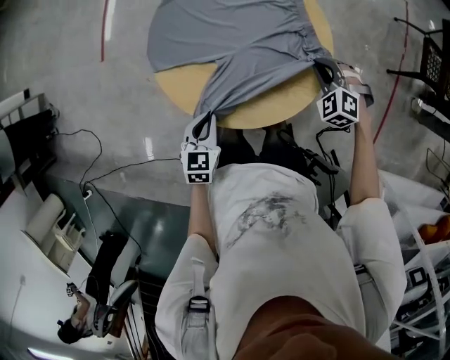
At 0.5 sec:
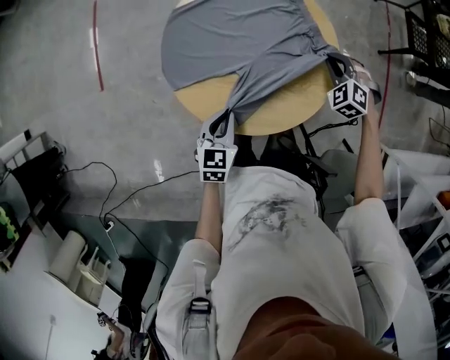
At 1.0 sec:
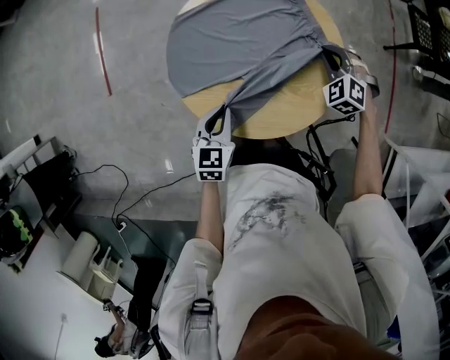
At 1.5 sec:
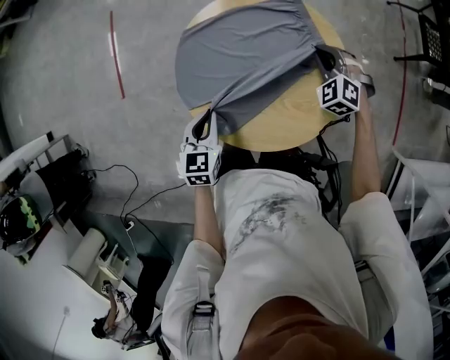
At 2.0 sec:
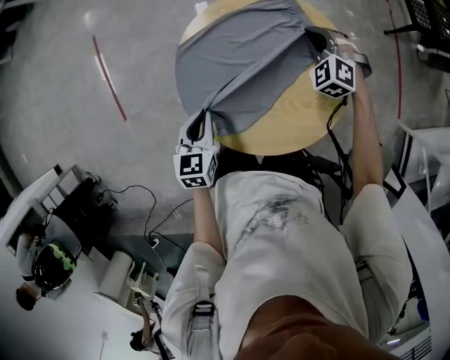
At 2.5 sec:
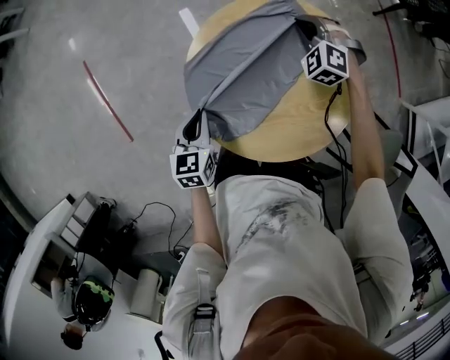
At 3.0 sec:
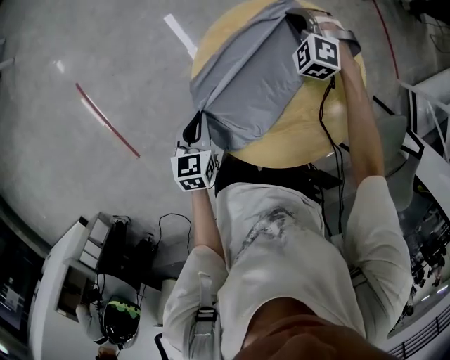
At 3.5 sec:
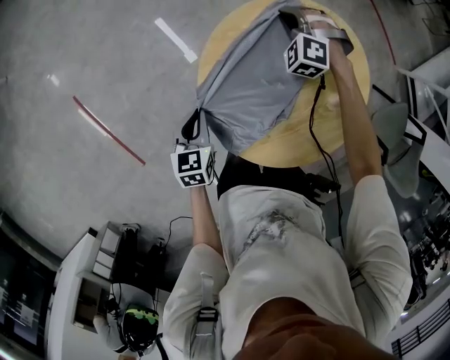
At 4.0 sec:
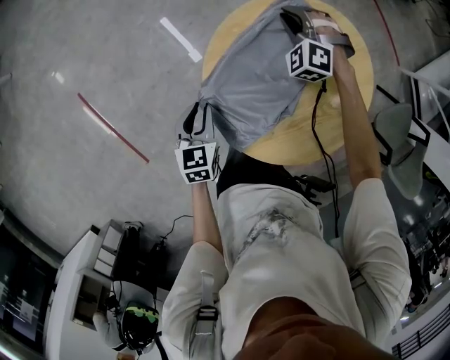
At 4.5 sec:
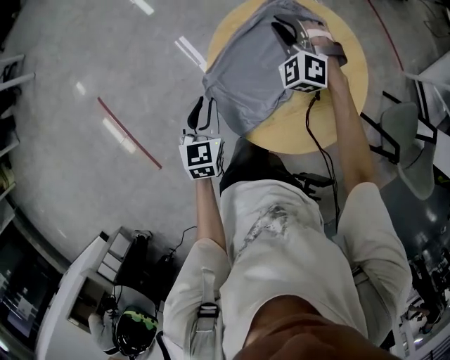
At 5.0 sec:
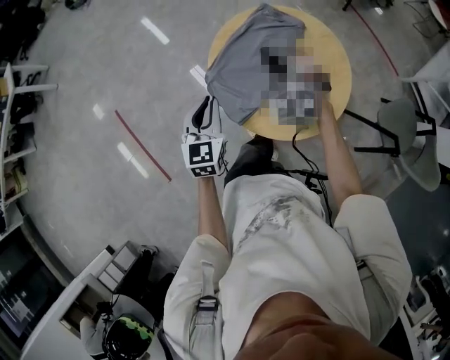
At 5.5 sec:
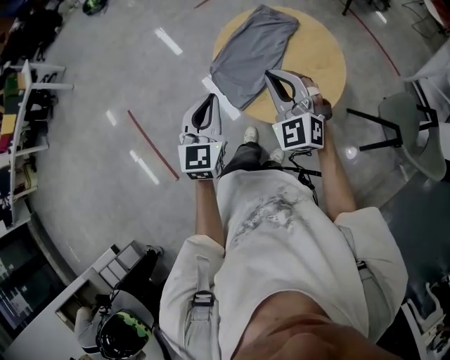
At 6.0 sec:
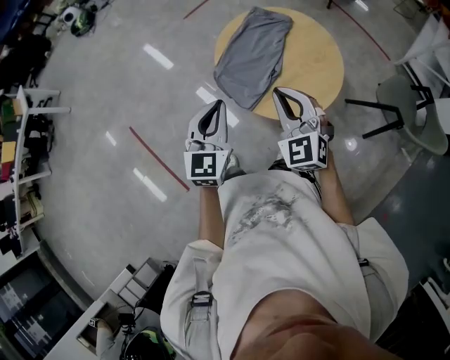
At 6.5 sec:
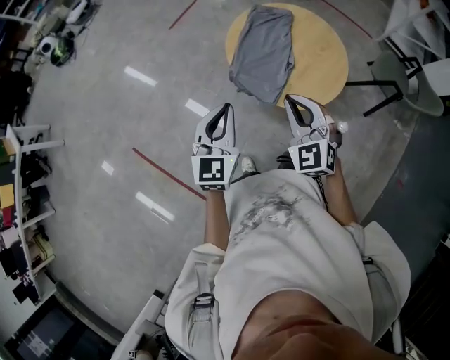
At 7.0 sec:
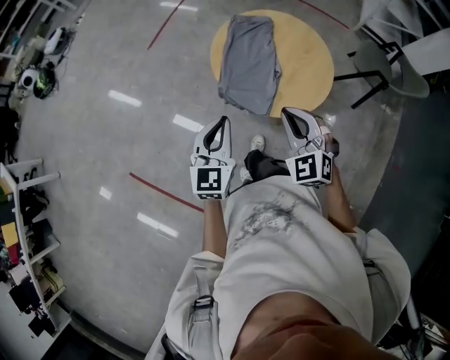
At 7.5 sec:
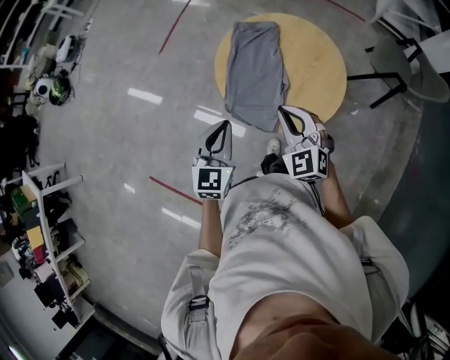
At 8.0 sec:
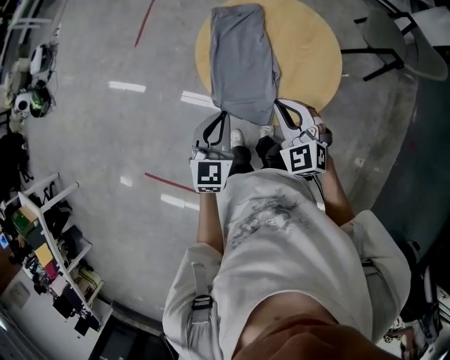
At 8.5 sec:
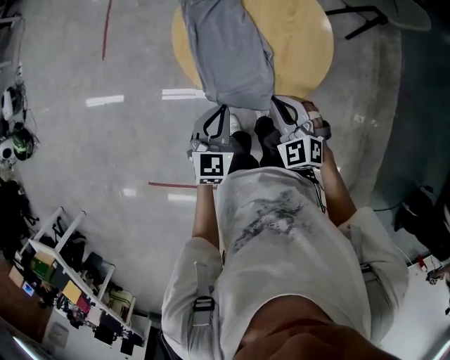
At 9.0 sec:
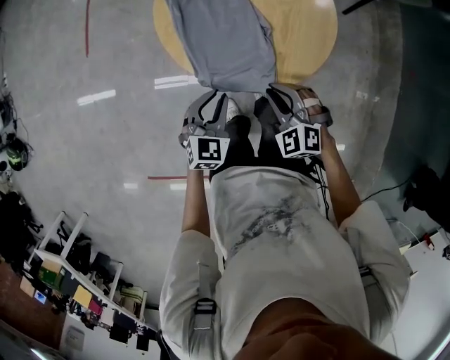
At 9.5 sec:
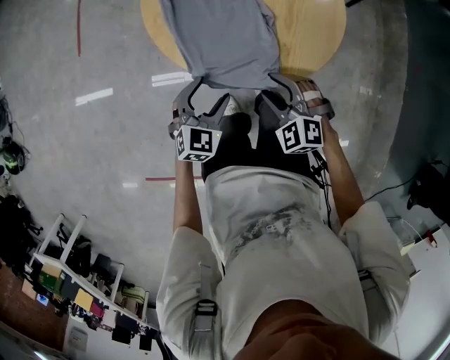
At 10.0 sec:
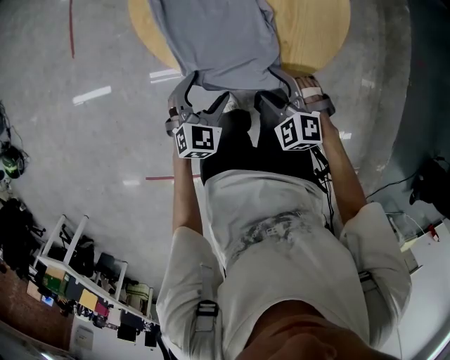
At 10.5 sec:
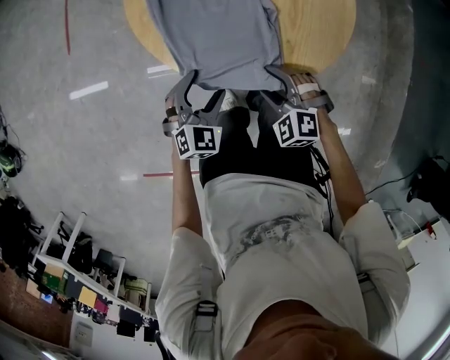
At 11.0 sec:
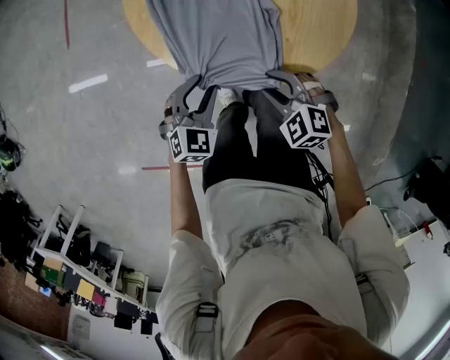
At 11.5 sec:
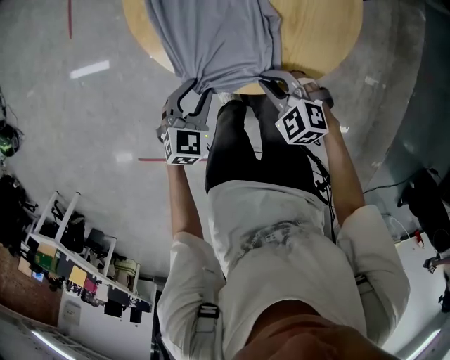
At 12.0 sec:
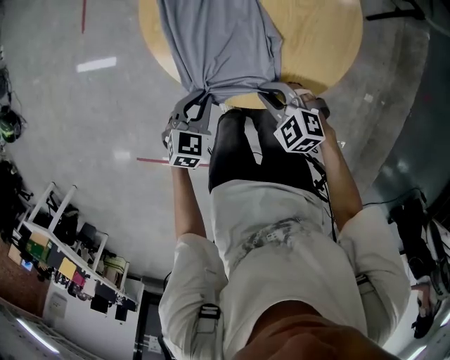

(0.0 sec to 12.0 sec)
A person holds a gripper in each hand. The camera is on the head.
0.0 sec - 2.0 sec: The two grippers go about 20 cm forward and to the left. The right gripper rotates approximately 20 degrees.
2.0 sec - 4.0 sec: The right gripper shifts by roughly 15 cm. The left gripper ends up about 20 cm from where it was, and turns by about 20 degrees.
4.0 sec - 6.0 sec: The left gripper heads upward and backward, covering approximately 40 cm, and changes its angle by roughly 40 degrees. Meanwhile the right gripper travels backward and upward by approximately 60 cm, and swivels about 50 degrees.
6.0 sec - 8.0 sec: The left gripper changes place by some 20 cm, and swivels some 30 degrees; the right gripper shifts some 10 cm downward, and turns by roughly 30 degrees.
8.0 sec - 10.0 sec: Both grippers travel together downward, some 30 cm. The right gripper turns by roughly 30 degrees, and opens up, while the left gripper changes its angle by about 40 degrees, and opens.
10.0 sec - 12.0 sec: The left gripper turns by about 20 degrees, and closes. The right gripper rotates approximately 20 degrees, and closes its fingers.

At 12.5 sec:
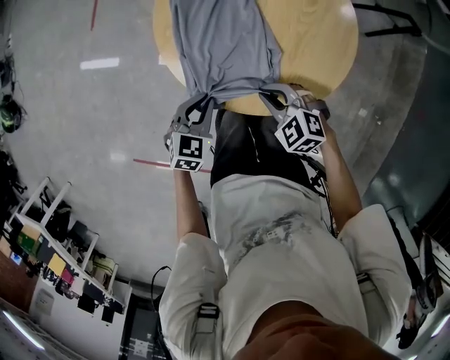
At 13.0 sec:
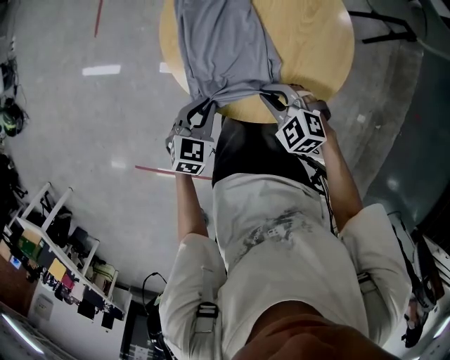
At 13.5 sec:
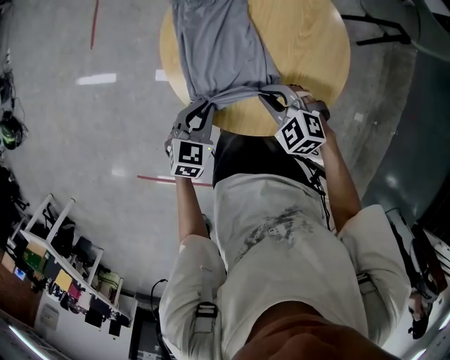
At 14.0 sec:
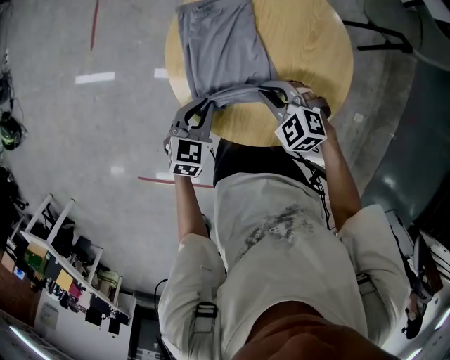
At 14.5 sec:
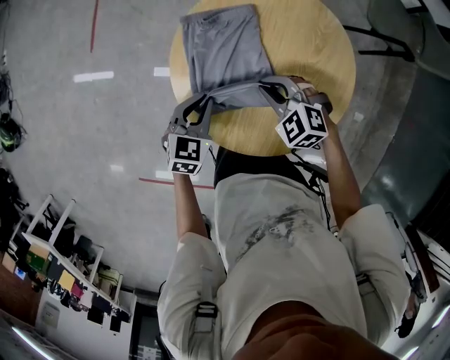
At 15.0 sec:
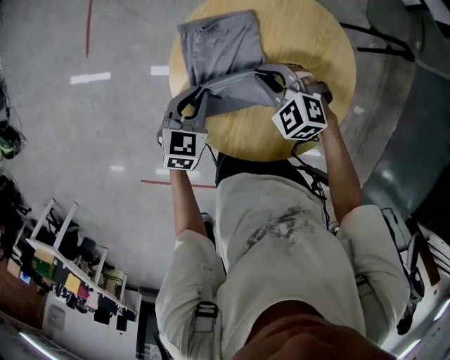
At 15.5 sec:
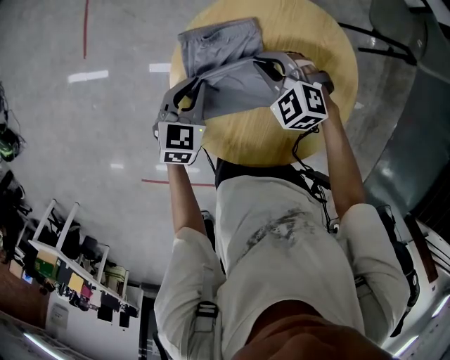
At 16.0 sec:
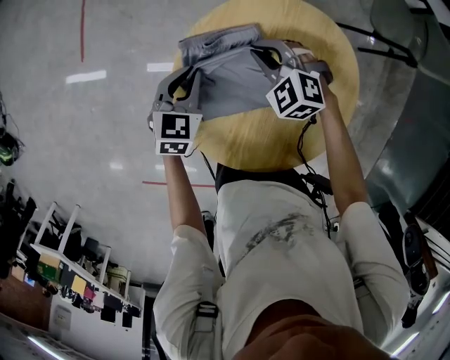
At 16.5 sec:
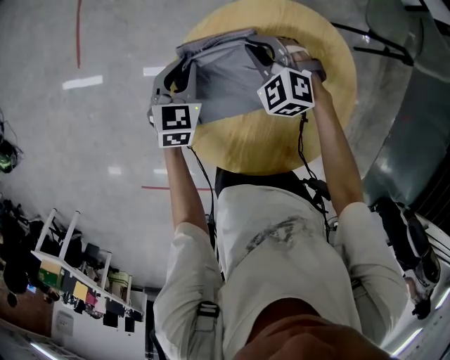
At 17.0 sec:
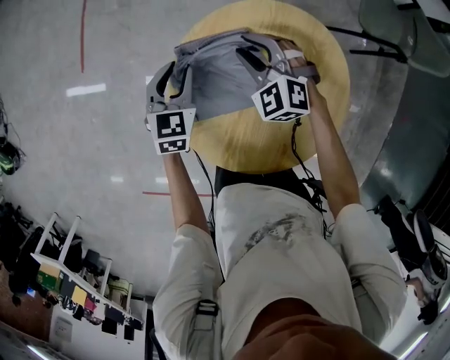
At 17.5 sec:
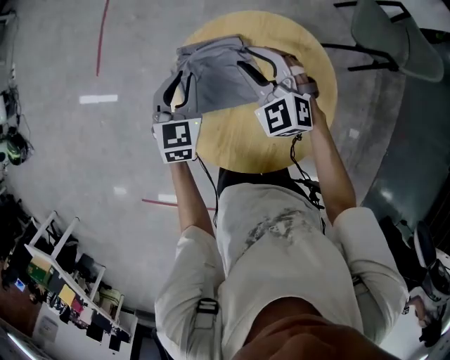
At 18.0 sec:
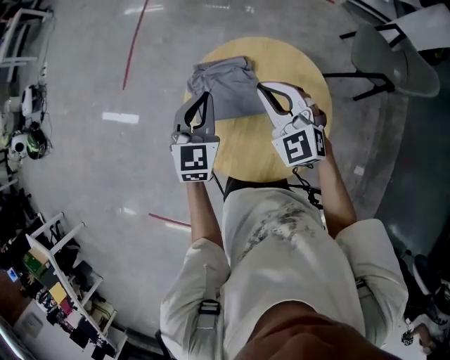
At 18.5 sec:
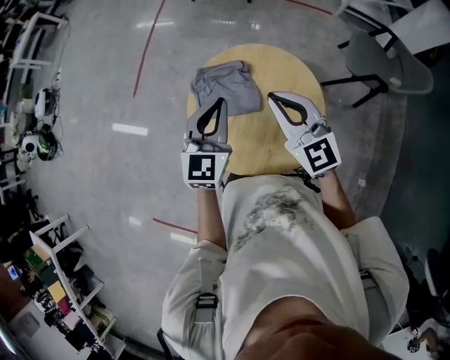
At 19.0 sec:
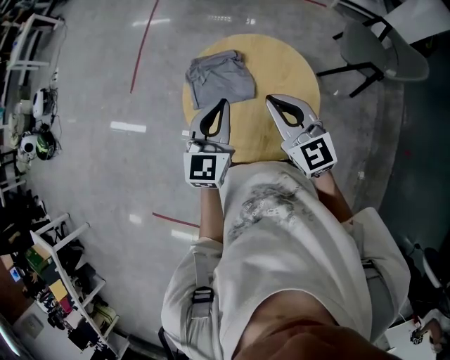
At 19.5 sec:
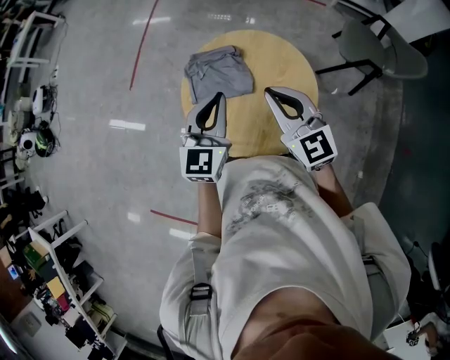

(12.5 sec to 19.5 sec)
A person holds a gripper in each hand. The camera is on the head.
12.5 sec - 14.5 sec: The two grippers go about 20 cm forward.
14.5 sec - 16.0 sec: The grippers both shift forward by about 15 cm.
16.0 sec - 17.5 sec: The grippers both shift upward by some 10 cm. The right gripper swivels roughly 20 degrees, and opens.
17.5 sec - 19.5 sec: The right gripper heads backward and upward, covering some 30 cm, rotates some 30 degrees, and closes up. Meanwhile the left gripper travels upward and backward by approximately 30 cm, and changes its angle by roughly 20 degrees.

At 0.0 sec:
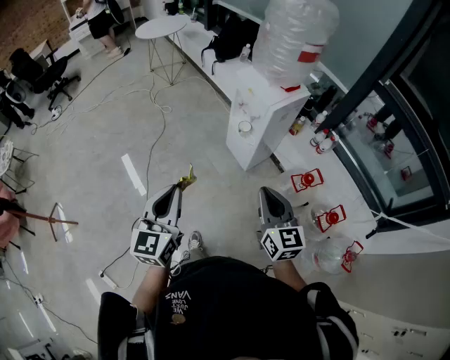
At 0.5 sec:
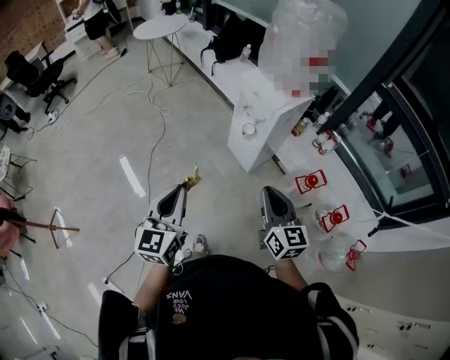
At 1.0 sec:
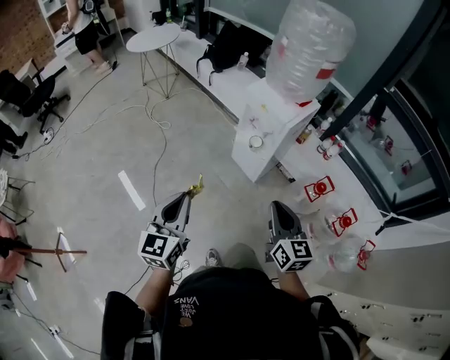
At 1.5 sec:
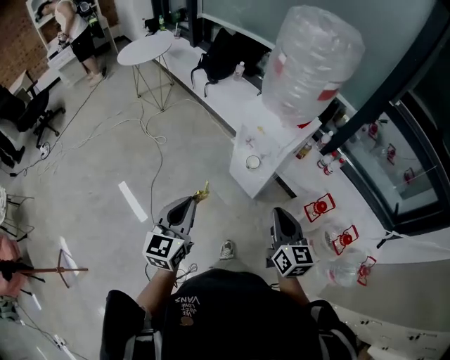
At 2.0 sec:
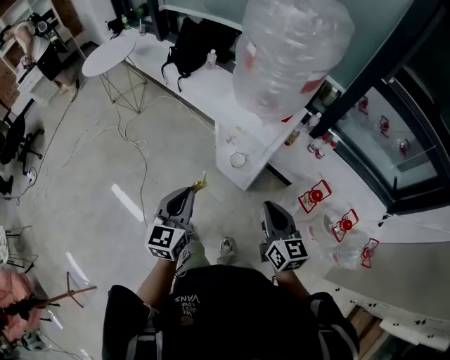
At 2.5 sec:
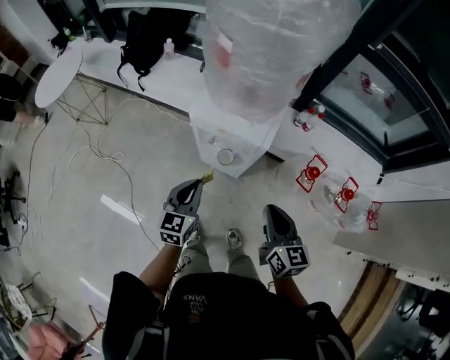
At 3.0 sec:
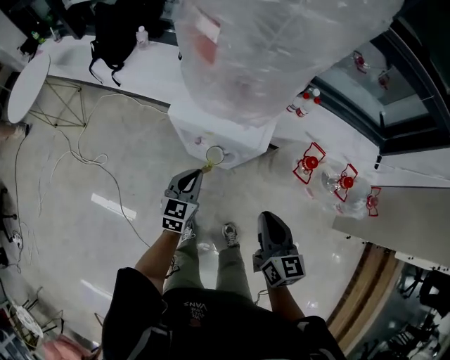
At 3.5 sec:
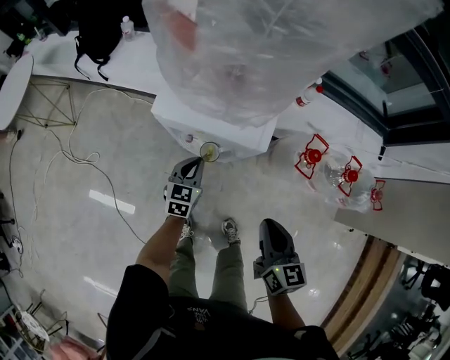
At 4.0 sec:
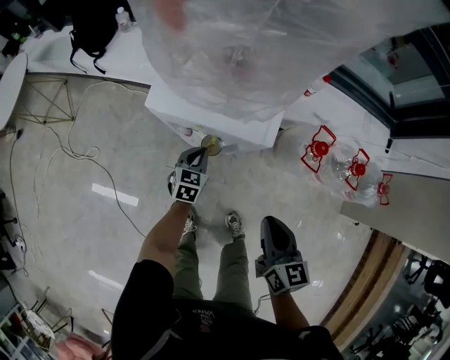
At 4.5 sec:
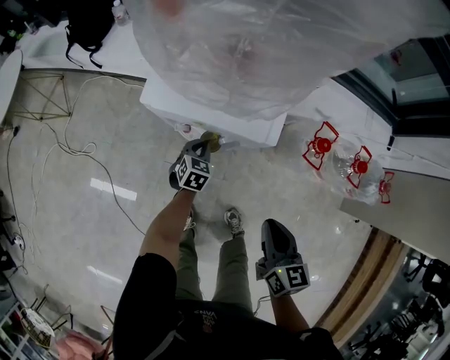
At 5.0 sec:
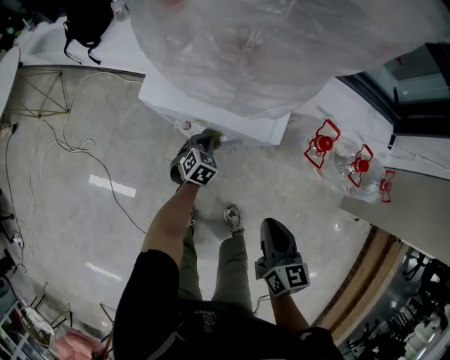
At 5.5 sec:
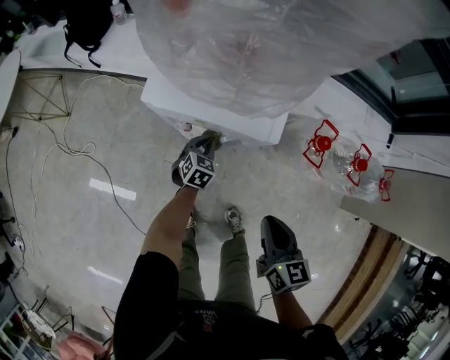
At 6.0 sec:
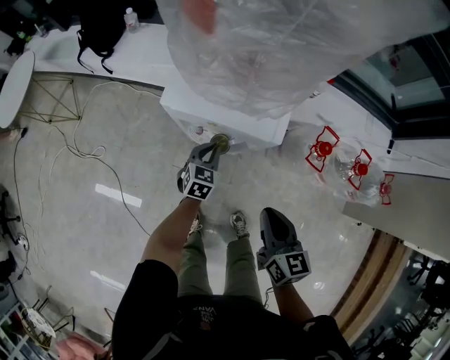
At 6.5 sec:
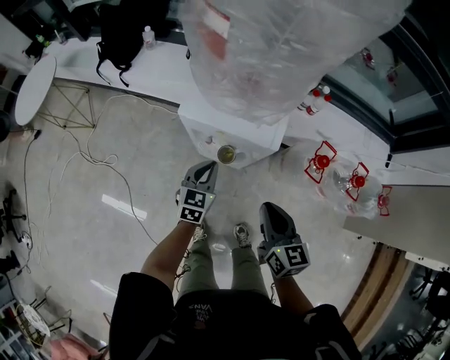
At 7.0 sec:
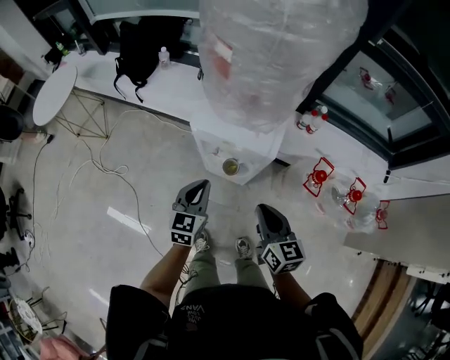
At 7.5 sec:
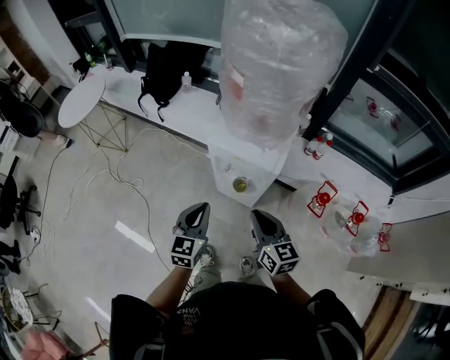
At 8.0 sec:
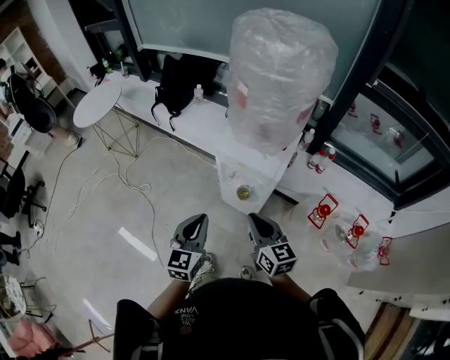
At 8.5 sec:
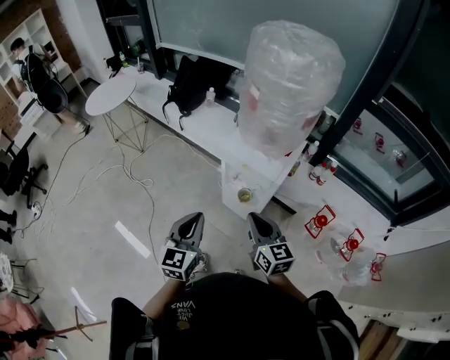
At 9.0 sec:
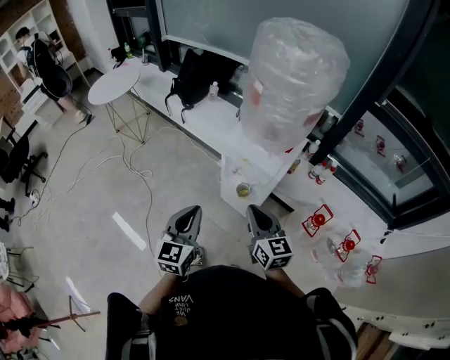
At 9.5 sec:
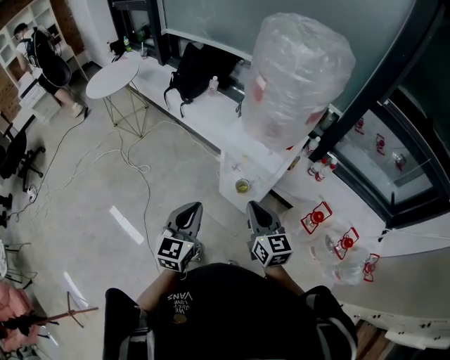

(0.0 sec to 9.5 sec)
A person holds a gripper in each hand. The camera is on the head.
0.0 sec - 2.0 sec: Both grippers travel together forward, approximately 30 cm. The left gripper changes its angle by about 20 degrees.
2.0 sec - 4.0 sec: The left gripper shifts roughly 40 cm downward, and changes its angle by about 40 degrees. The right gripper is displaced downward by approximately 20 cm, and turns by some 30 degrees.
4.0 sec - 5.5 sec: The left gripper ends up roughly 5 cm from where it was.
5.5 sec - 7.5 sec: The left gripper shifts about 40 cm upward and backward, and tilts its fingers about 30 degrees upward. The right gripper moves upward and to the left, roughly 20 cm, and changes its angle by about 30 degrees.
7.5 sec - 9.5 sec: The left gripper is displaced backward and upward by some 10 cm; the right gripper ends up approximately 5 cm from where it was.
